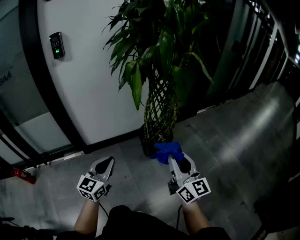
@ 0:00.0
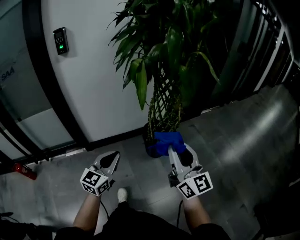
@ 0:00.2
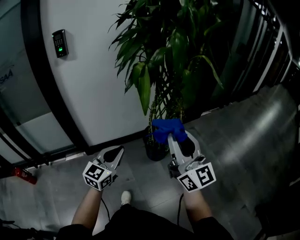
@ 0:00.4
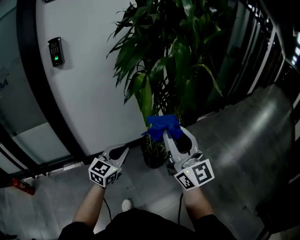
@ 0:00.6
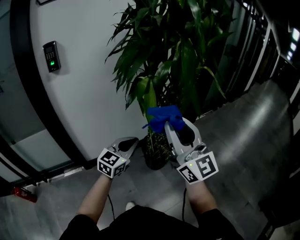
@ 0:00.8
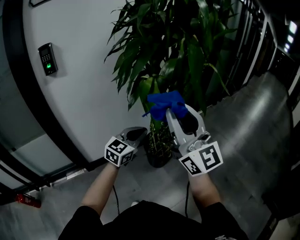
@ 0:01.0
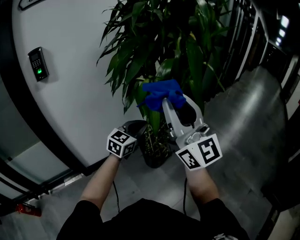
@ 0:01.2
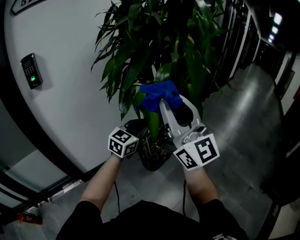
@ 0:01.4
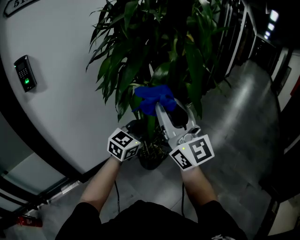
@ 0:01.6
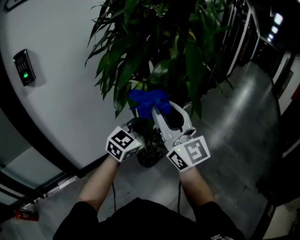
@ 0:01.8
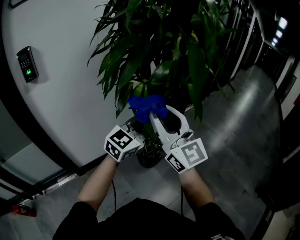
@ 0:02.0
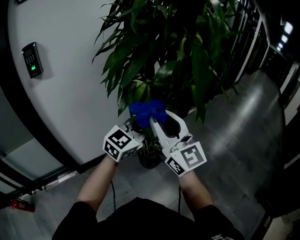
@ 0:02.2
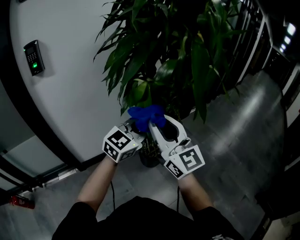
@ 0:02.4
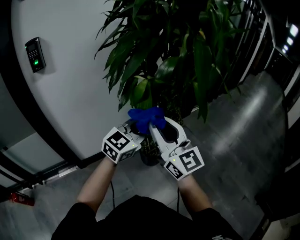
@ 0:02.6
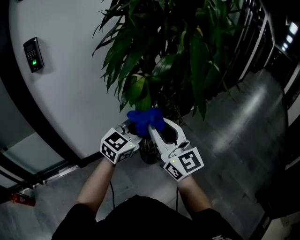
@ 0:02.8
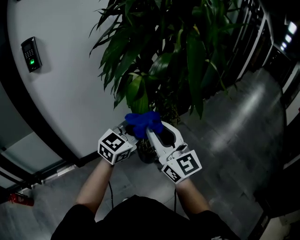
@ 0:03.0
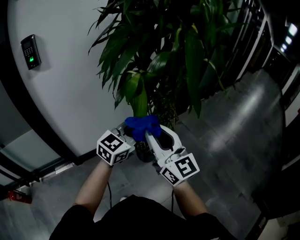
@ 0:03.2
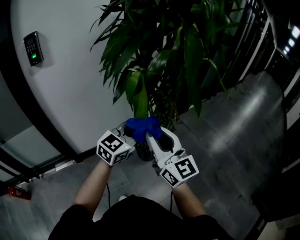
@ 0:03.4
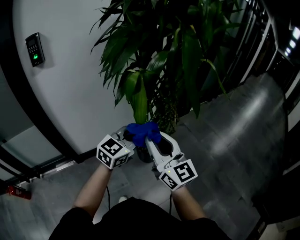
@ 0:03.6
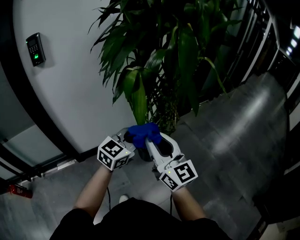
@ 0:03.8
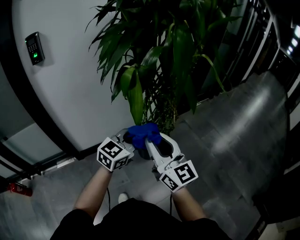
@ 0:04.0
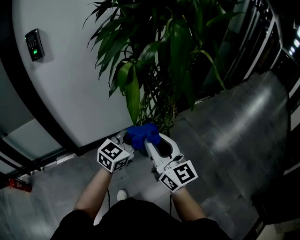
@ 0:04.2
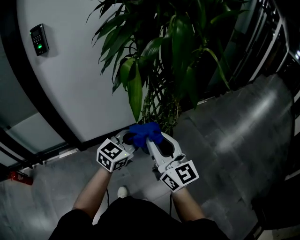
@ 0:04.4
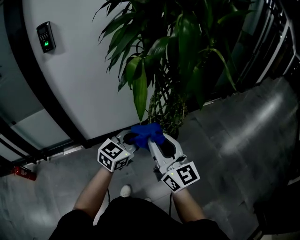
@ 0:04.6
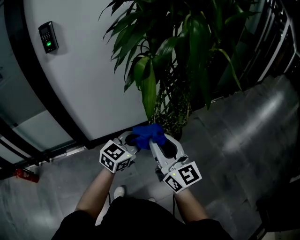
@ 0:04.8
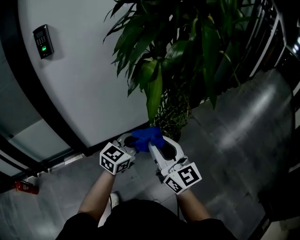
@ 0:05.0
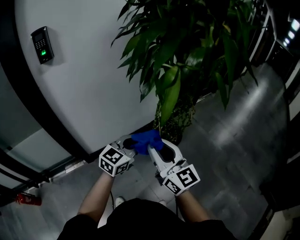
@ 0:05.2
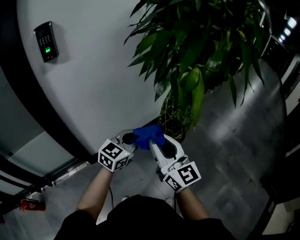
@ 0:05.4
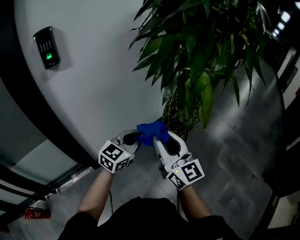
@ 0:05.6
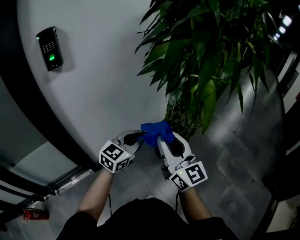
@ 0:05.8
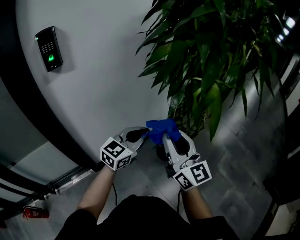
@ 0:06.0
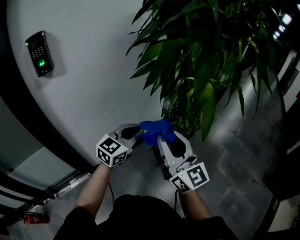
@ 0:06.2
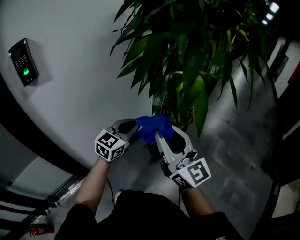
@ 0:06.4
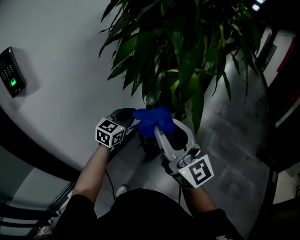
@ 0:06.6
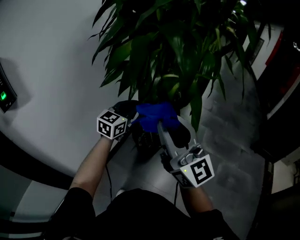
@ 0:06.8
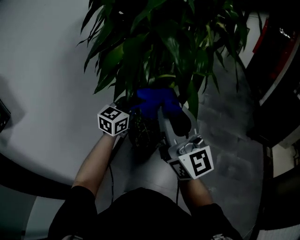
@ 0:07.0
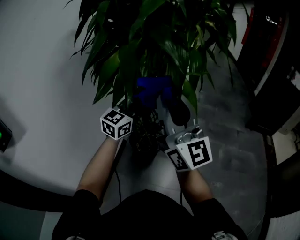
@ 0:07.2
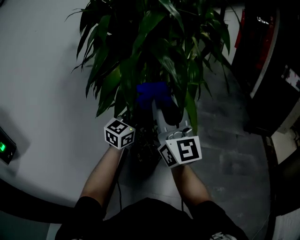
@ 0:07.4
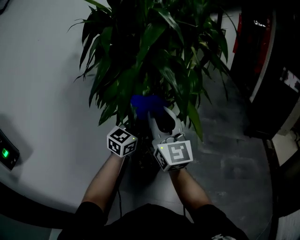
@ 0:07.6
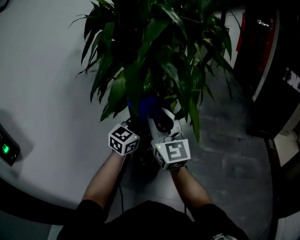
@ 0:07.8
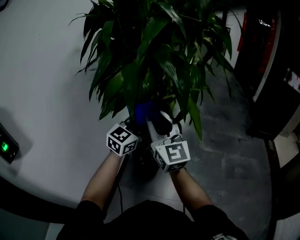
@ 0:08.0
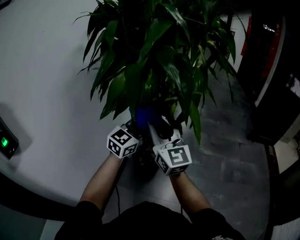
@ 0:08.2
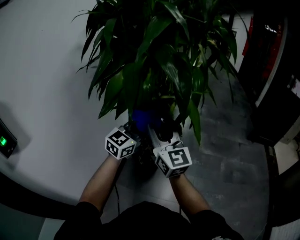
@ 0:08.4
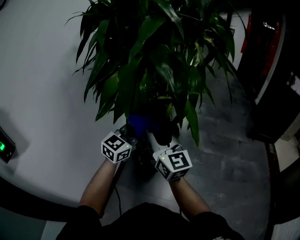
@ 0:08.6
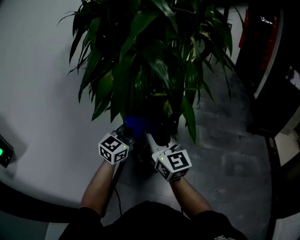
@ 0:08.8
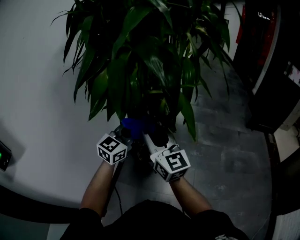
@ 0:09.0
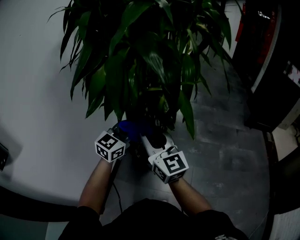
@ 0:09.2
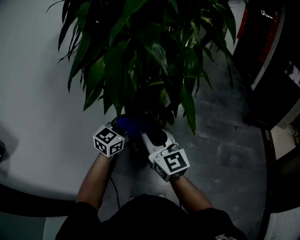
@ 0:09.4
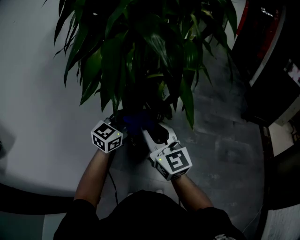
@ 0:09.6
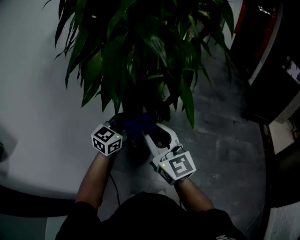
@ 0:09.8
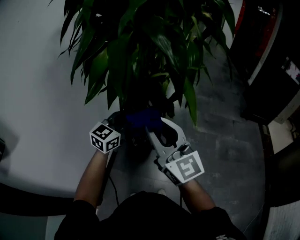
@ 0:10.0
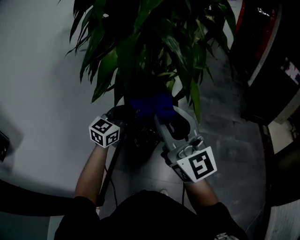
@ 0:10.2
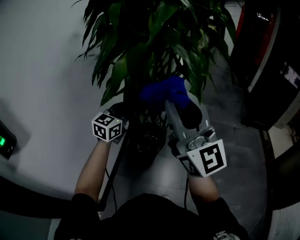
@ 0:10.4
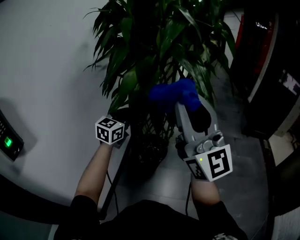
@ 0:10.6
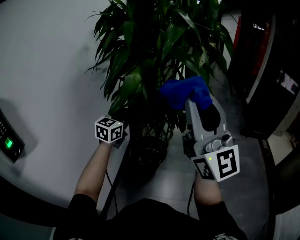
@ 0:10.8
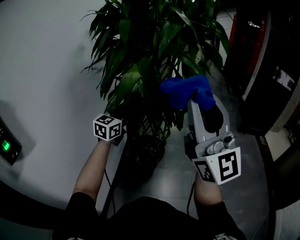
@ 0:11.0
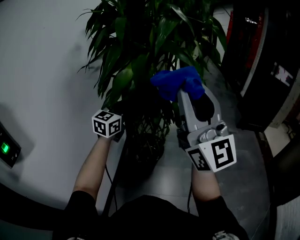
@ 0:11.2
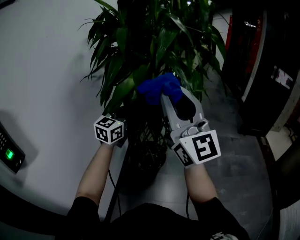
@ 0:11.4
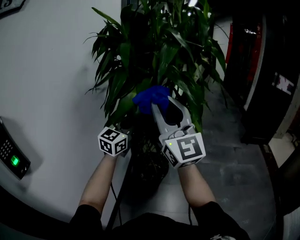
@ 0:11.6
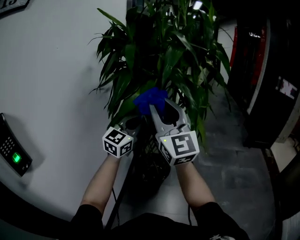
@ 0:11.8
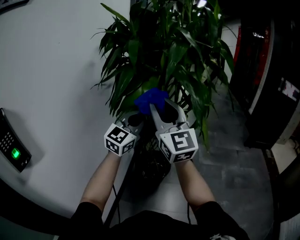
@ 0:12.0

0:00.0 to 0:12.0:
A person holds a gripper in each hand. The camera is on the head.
0:00.0 to 0:01.6: The right gripper is displaced upward, forward and to the left by some 30 cm, and rotates roughly 30 degrees. Meanwhile the left gripper moves forward, roughly 30 cm, and changes its angle by about 40 degrees.
0:01.6 to 0:03.0: The right gripper heads downward, covering approximately 10 cm.
0:03.0 to 0:04.4: The left gripper moves downward and backward, about 10 cm. The right gripper shifts about 10 cm downward and to the right.
0:04.4 to 0:06.0: The two grippers go roughly 25 cm to the left.
0:06.0 to 0:07.6: The left gripper changes place by some 20 cm, and turns by approximately 40 degrees. Meanwhile the right gripper shifts by roughly 15 cm, and turns by some 50 degrees.
0:07.6 to 0:09.0: The right gripper heads downward, covering approximately 10 cm, while the left gripper moves downward, some 5 cm.
0:09.0 to 0:10.4: The left gripper moves to the left, roughly 10 cm; the right gripper heads upward and backward, covering about 20 cm, and turns by roughly 30 degrees.
0:10.4 to 0:12.0: The left gripper shifts about 10 cm upward, and swivels approximately 20 degrees. Meanwhile the right gripper is displaced forward and to the left by about 15 cm.

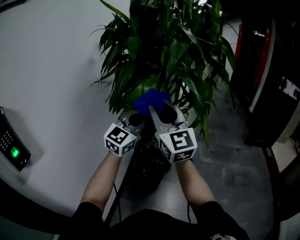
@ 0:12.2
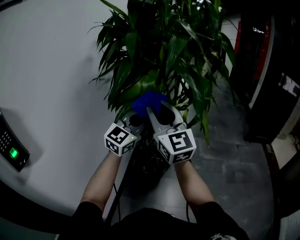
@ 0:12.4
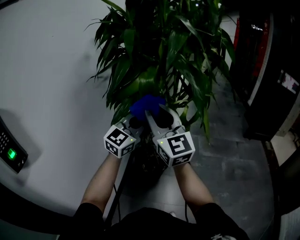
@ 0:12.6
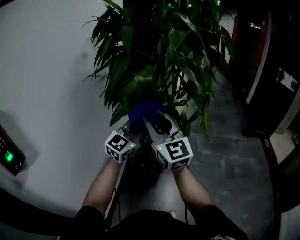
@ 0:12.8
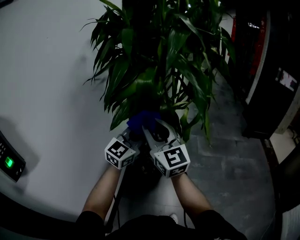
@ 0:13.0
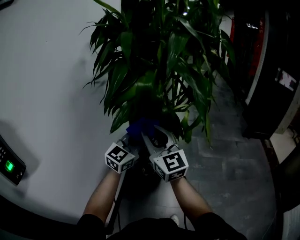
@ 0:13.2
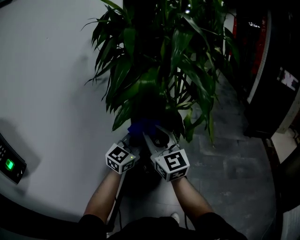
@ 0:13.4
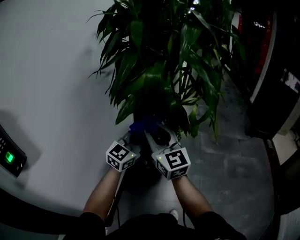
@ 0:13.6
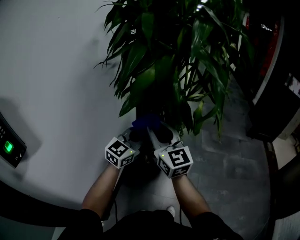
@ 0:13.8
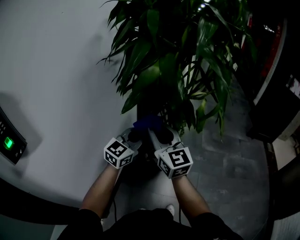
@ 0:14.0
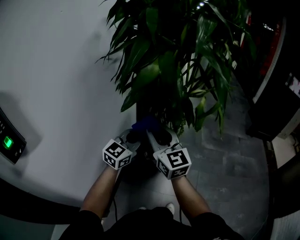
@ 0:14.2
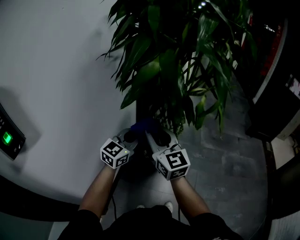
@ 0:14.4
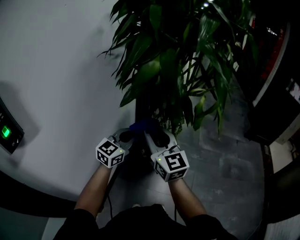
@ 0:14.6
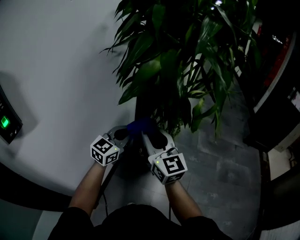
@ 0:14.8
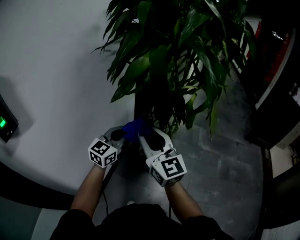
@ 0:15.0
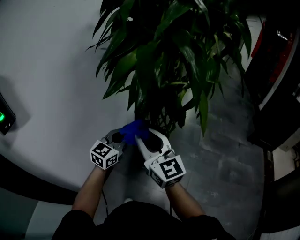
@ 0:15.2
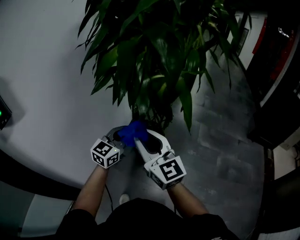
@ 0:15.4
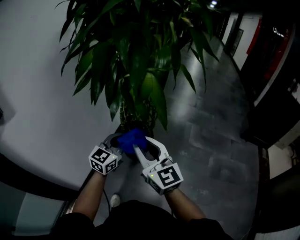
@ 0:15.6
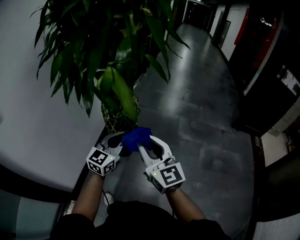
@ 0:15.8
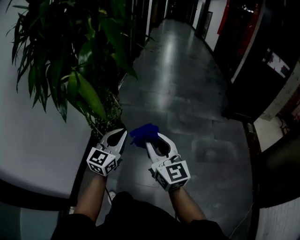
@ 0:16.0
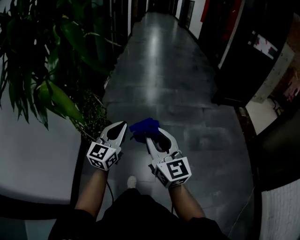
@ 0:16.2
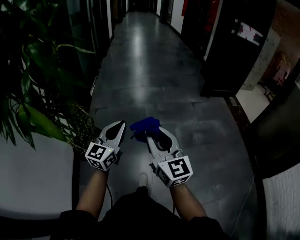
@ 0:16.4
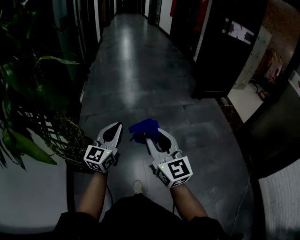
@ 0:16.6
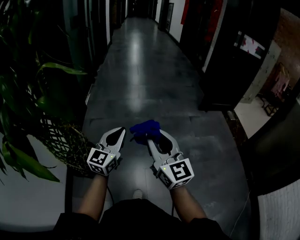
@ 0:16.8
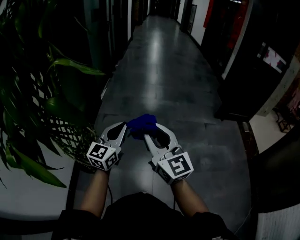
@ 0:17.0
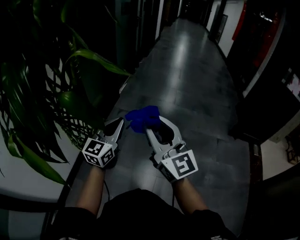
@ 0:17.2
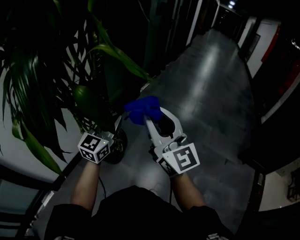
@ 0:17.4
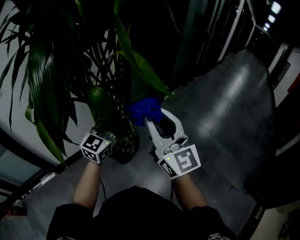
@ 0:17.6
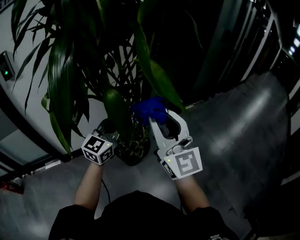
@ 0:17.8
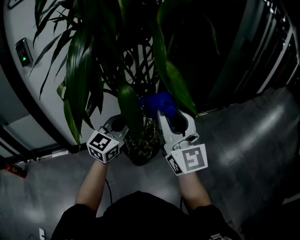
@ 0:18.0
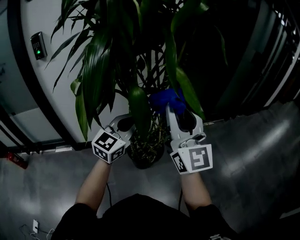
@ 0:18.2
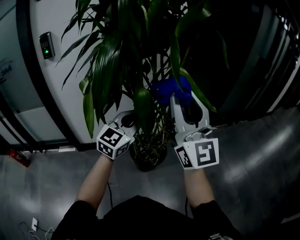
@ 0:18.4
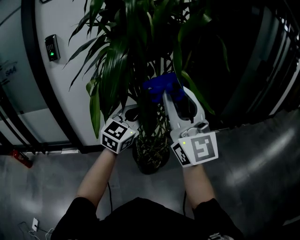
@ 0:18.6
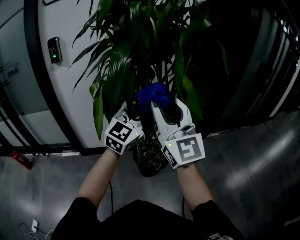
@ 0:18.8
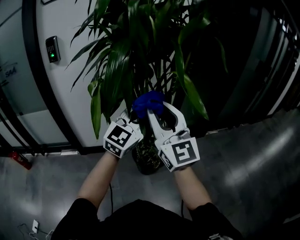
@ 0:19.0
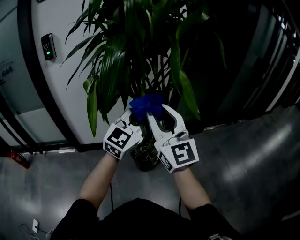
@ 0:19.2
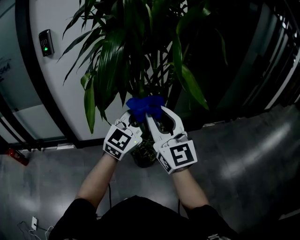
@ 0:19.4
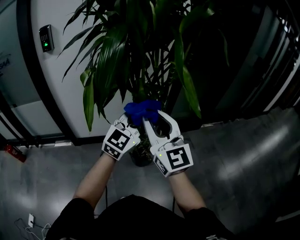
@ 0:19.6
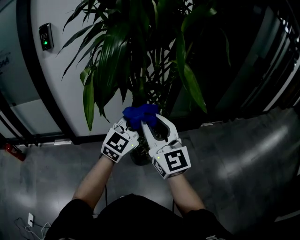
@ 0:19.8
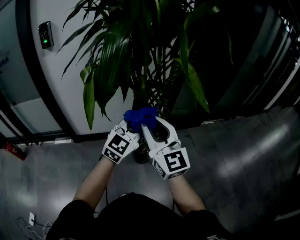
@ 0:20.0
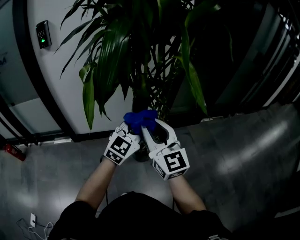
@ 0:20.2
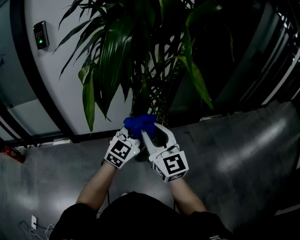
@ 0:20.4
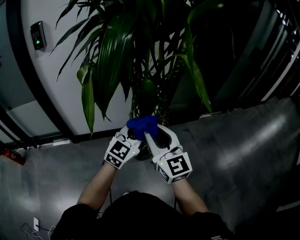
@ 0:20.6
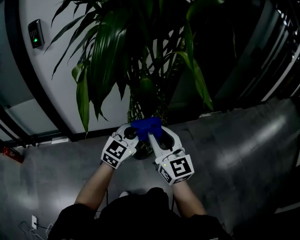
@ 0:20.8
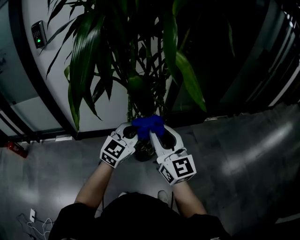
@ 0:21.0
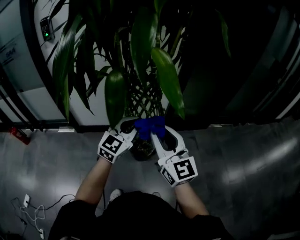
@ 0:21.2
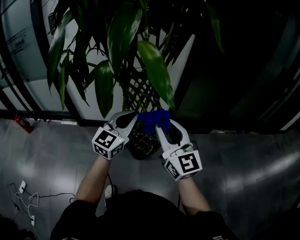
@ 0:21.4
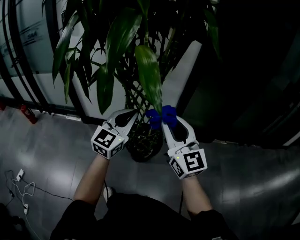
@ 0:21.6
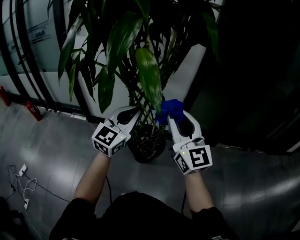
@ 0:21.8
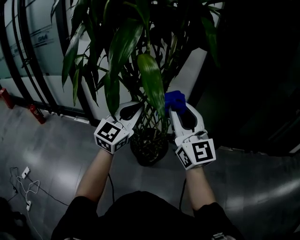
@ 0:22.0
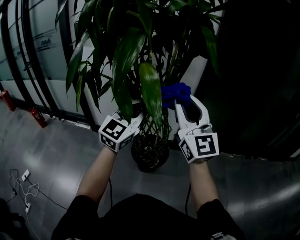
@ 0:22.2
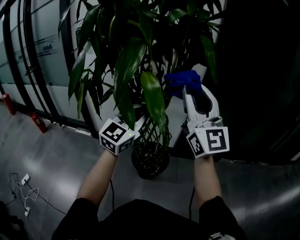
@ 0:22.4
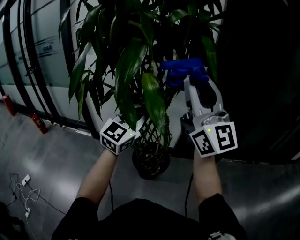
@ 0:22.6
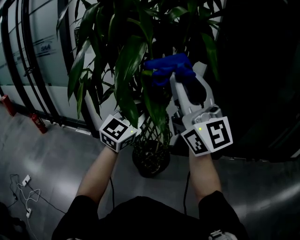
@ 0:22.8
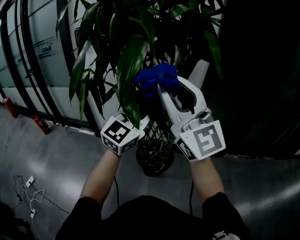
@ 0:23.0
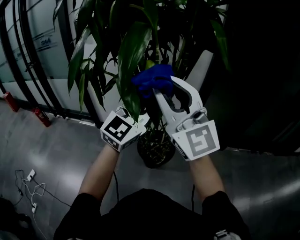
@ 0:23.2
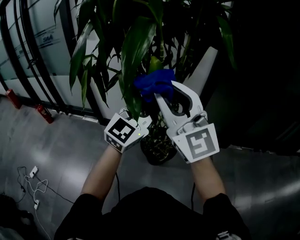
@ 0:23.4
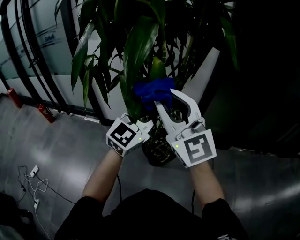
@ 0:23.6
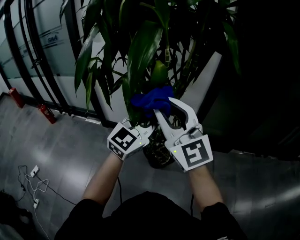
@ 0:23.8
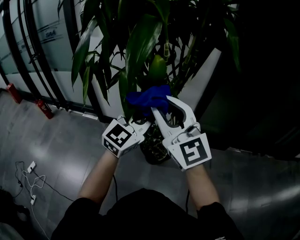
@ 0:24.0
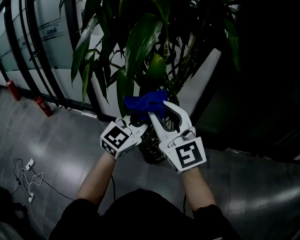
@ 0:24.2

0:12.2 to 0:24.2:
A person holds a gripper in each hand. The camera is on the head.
0:12.2 to 0:13.8: The grippers both shift downward by roughly 15 cm.
0:13.8 to 0:15.2: The left gripper shifts roughly 5 cm downward, while the right gripper travels backward by approximately 5 cm.
0:15.2 to 0:16.6: The two grippers travel together, about 60 cm. The right gripper rotates roughly 40 degrees; the left gripper changes its angle by approximately 20 degrees.
0:16.6 to 0:18.2: The right gripper shifts by approximately 40 cm, and changes its angle by approximately 80 degrees. Meanwhile the left gripper changes place by approximately 30 cm, and turns by about 70 degrees.
0:18.2 to 0:19.8: The left gripper reaches approximately 10 cm upward, then returns. Meanwhile the right gripper is displaced to the left and downward by some 10 cm.
0:19.8 to 0:21.2: The left gripper travels downward by some 10 cm; the right gripper heads to the right and downward, covering some 15 cm.
0:21.2 to 0:22.6: The left gripper shifts about 15 cm upward, while the right gripper shifts about 30 cm upward, and turns by some 30 degrees.
0:22.6 to 0:24.2: The left gripper moves downward, roughly 5 cm. Meanwhile the right gripper travels downward and to the left by approximately 20 cm, and swivels about 30 degrees.
